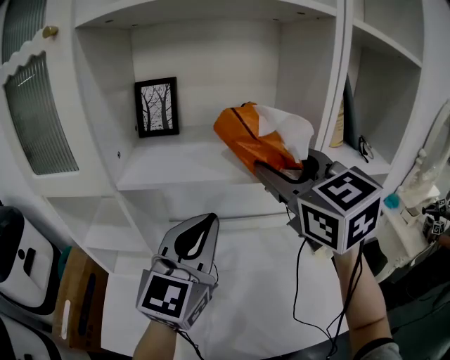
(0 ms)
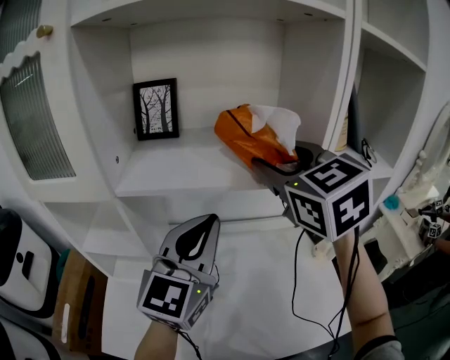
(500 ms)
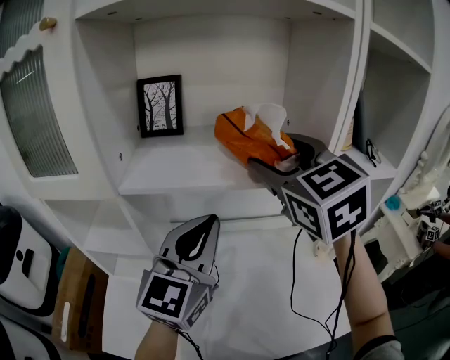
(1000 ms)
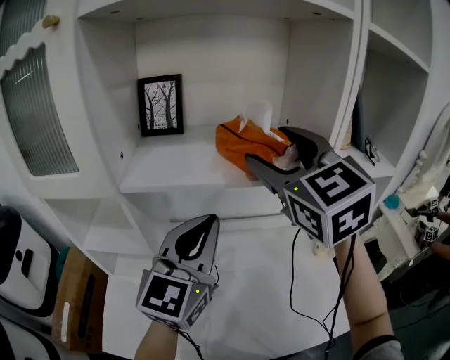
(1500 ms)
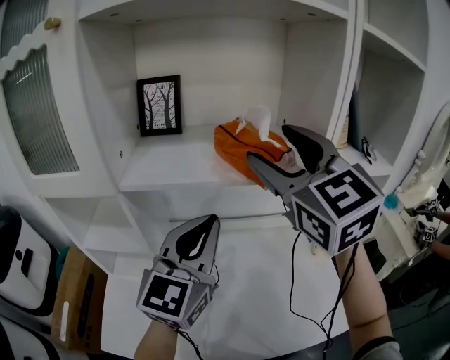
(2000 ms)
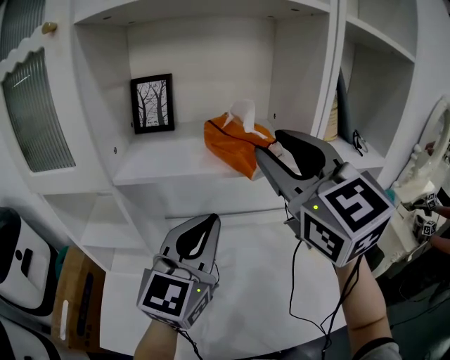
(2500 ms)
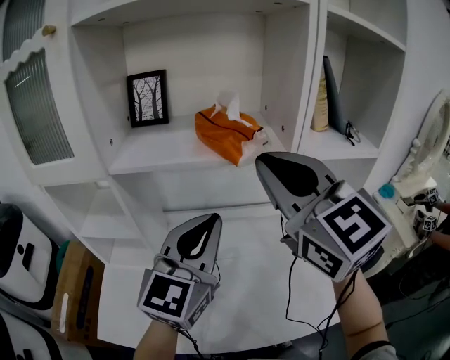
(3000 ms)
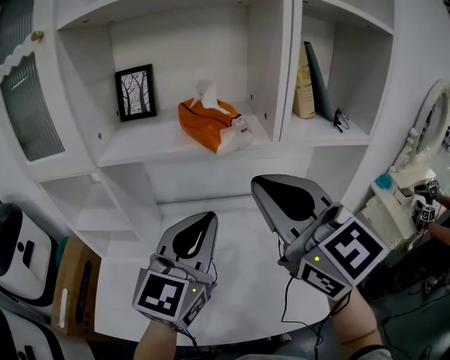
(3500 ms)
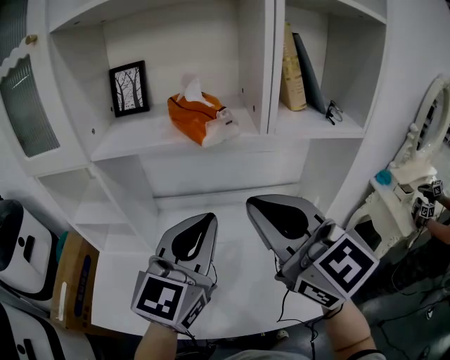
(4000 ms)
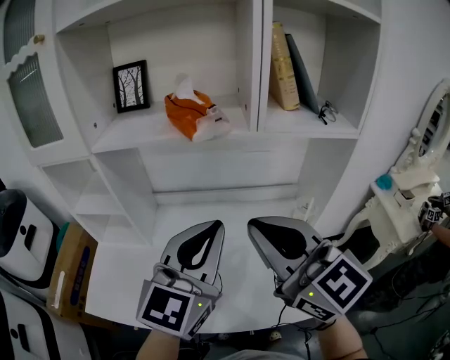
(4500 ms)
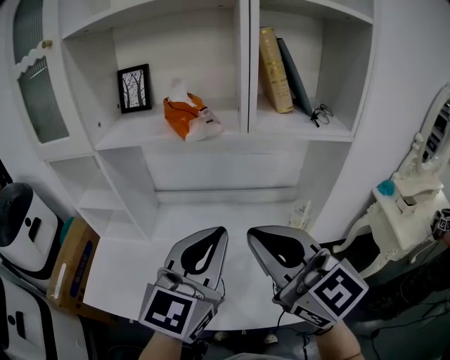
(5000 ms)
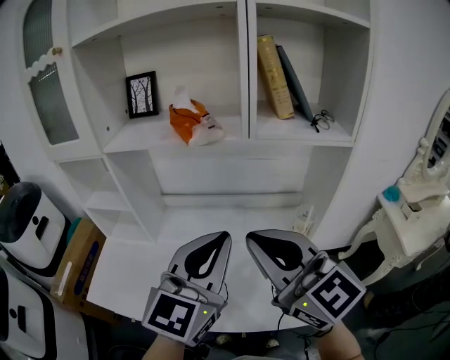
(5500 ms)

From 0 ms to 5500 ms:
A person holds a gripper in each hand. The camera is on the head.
From 0 ms to 2000 ms: The right gripper opens.
From 2000 ms to 3500 ms: The left gripper is displaced to the right and backward by some 10 cm, while the right gripper travels backward and downward by about 15 cm, and closes up.
From 3500 ms to 5500 ms: The right gripper goes roughly 15 cm backward, downward and to the right; the left gripper goes some 15 cm backward and to the right.

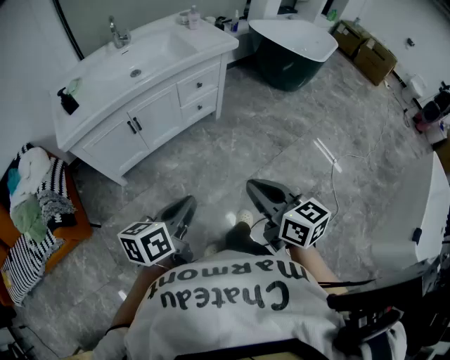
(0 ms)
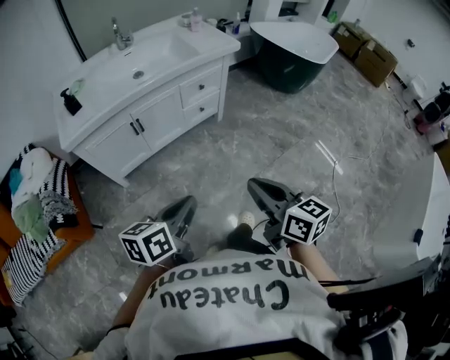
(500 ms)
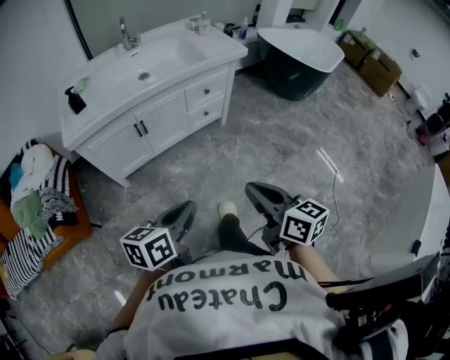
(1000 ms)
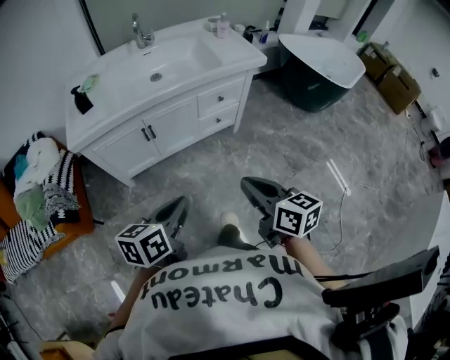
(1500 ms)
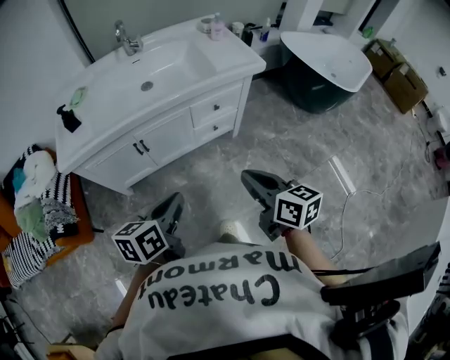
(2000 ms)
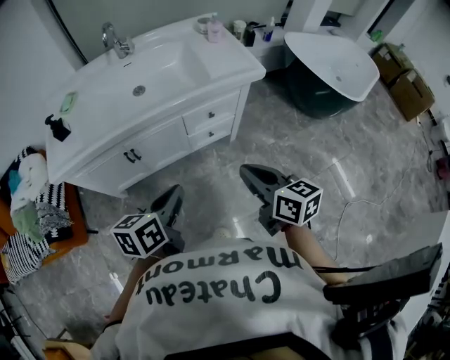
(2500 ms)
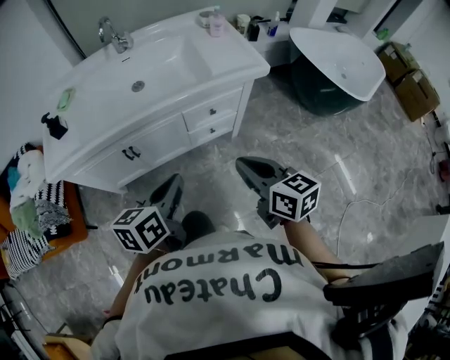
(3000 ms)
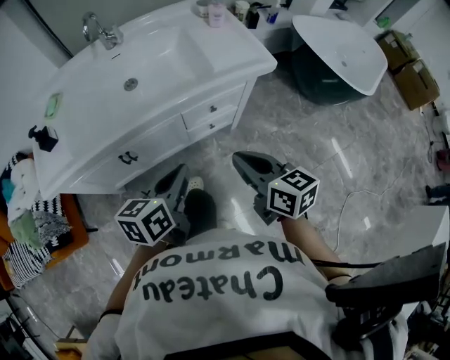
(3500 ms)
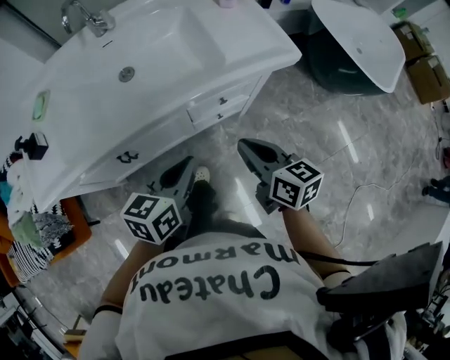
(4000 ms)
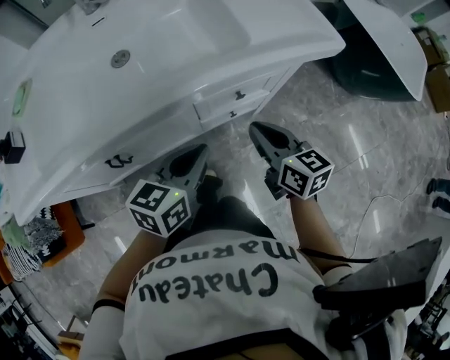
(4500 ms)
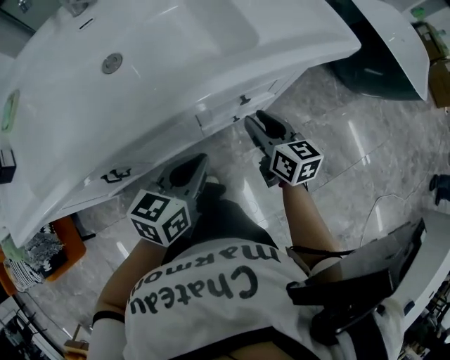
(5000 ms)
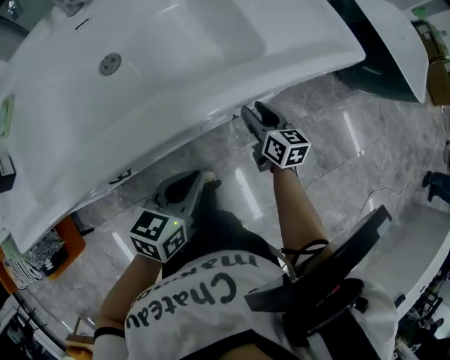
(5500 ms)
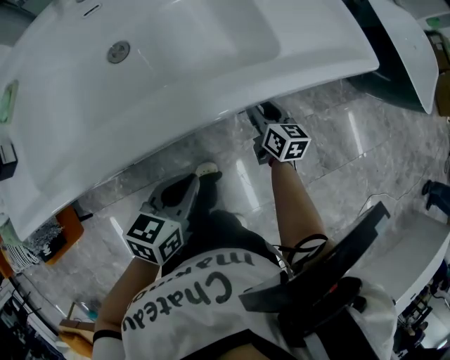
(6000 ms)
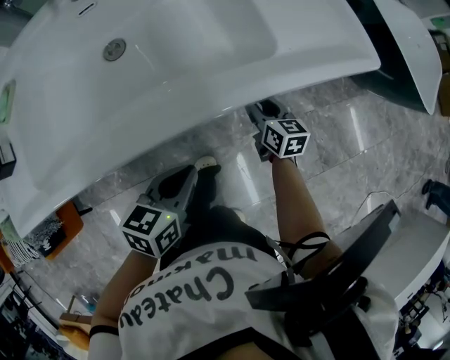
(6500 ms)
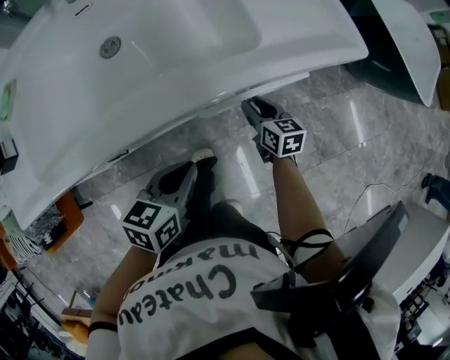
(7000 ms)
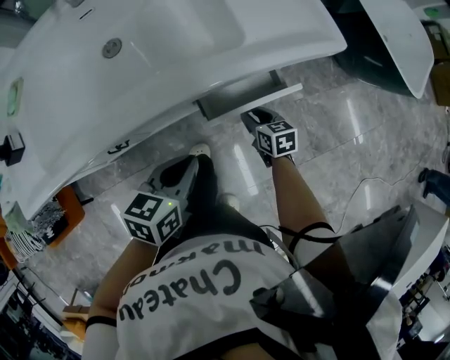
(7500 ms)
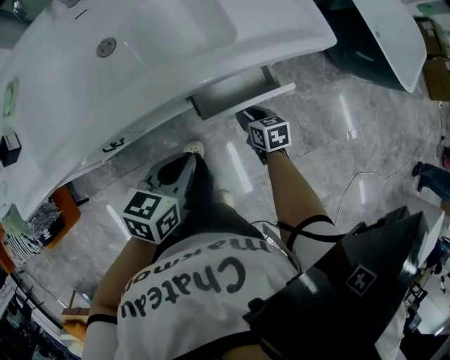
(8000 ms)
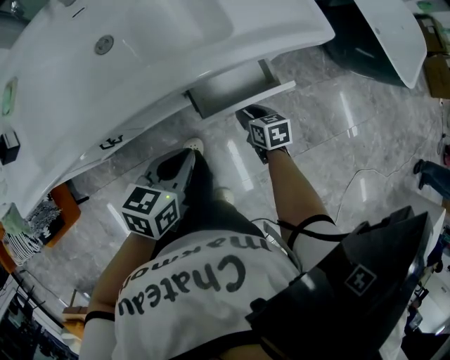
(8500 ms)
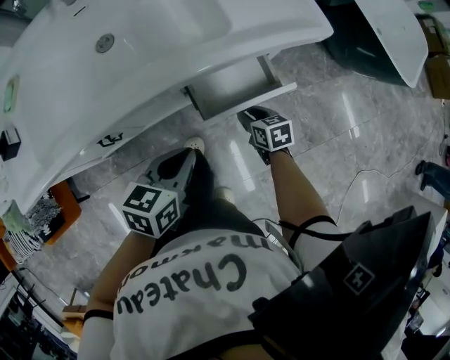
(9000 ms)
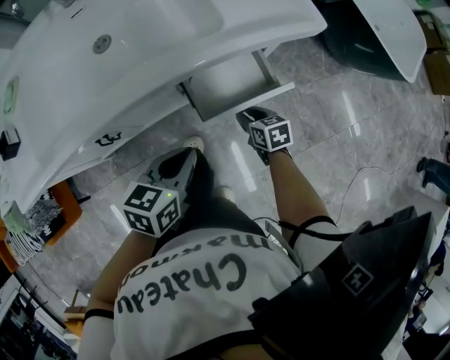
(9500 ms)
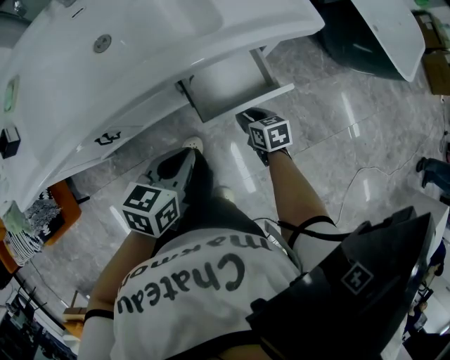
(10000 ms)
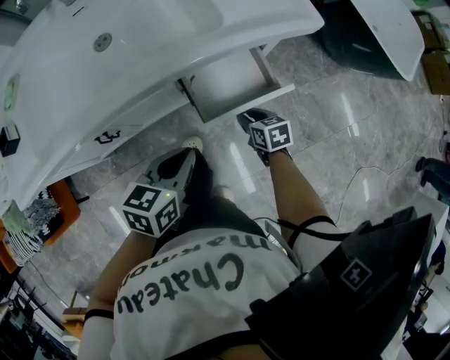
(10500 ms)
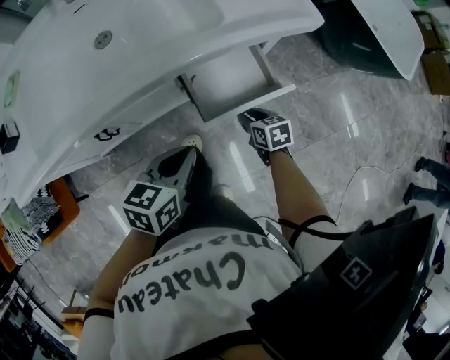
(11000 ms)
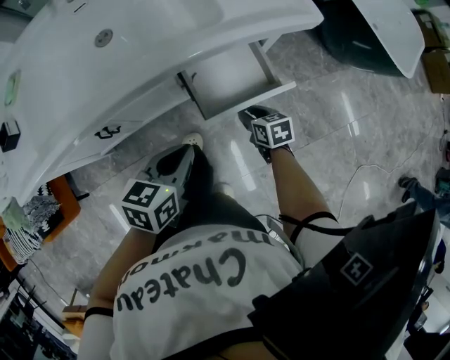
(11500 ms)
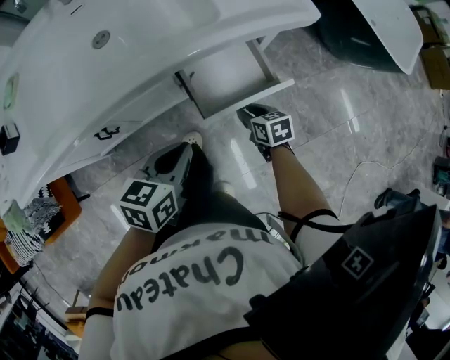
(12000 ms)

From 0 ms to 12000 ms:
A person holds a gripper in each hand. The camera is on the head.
From 0 ms to 2000 ms: Both grippers travel together forward, about 25 cm.
From 2000 ms to 4000 ms: Both grippers move forward, approximately 25 cm.
From 4000 ms to 6000 ms: The right gripper shifts about 35 cm downward and forward, and opens. Meanwhile the left gripper shifts approximately 15 cm downward.
From 6000 ms to 8000 ms: The right gripper heads backward and to the right, covering some 10 cm, and turns by approximately 30 degrees; the left gripper heads upward and to the right, covering some 10 cm.
From 8000 ms to 10000 ms: The grippers make only small movements.
From 10000 ms to 12000 ms: The grippers make only small movements.

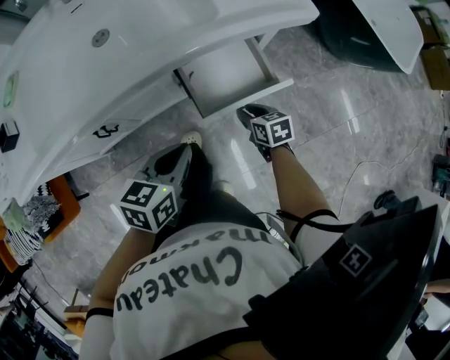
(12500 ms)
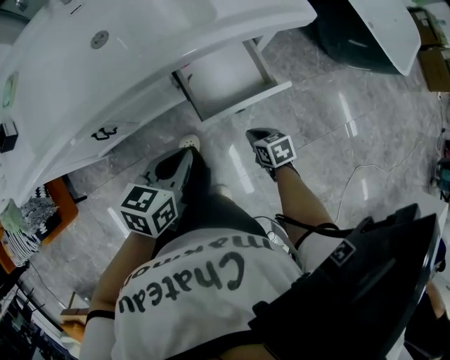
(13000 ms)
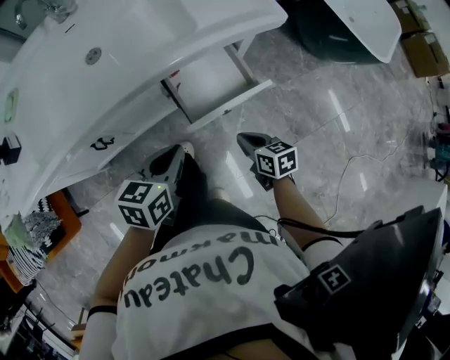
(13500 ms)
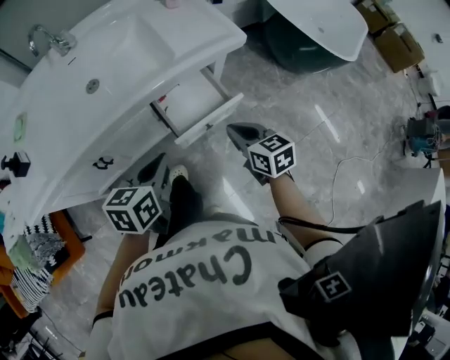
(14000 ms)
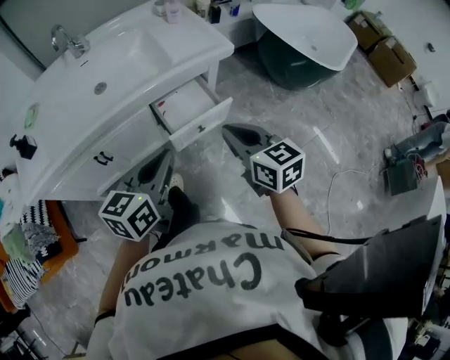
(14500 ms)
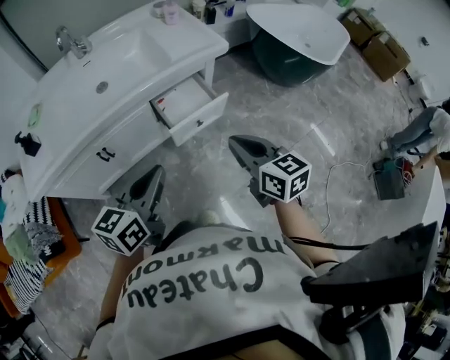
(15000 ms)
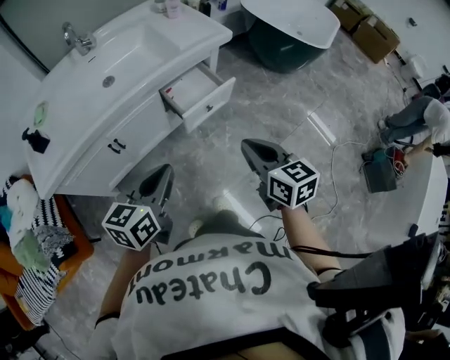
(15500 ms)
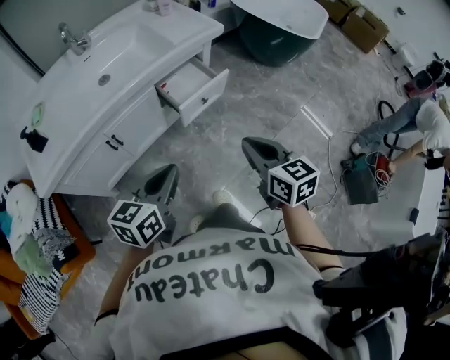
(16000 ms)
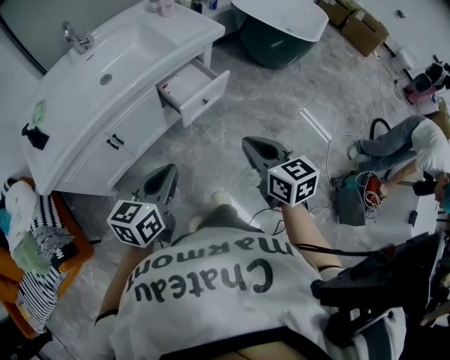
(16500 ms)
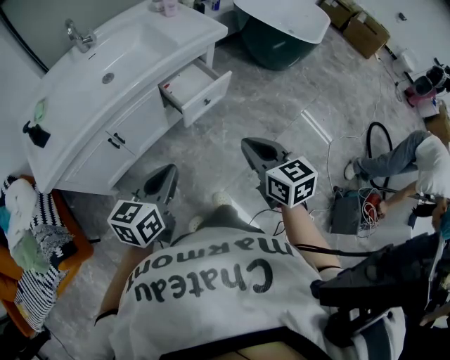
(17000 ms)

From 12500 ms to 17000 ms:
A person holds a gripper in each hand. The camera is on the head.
From 12500 ms to 14500 ms: The left gripper travels upward and backward by about 20 cm, and changes its angle by some 20 degrees, while the right gripper travels upward and backward by about 40 cm, turns by some 30 degrees, and closes its fingers.
From 14500 ms to 17000 ms: The right gripper goes about 20 cm backward. The left gripper moves backward and to the left, approximately 20 cm.

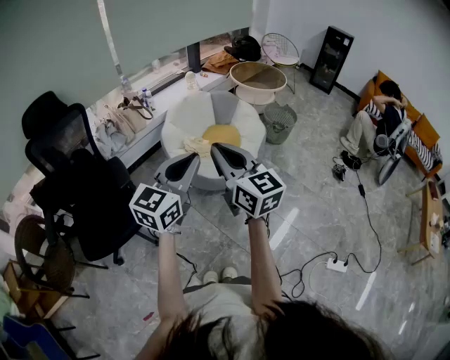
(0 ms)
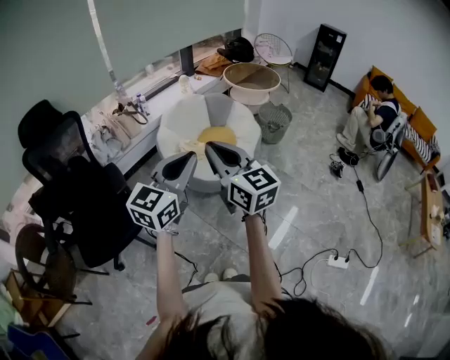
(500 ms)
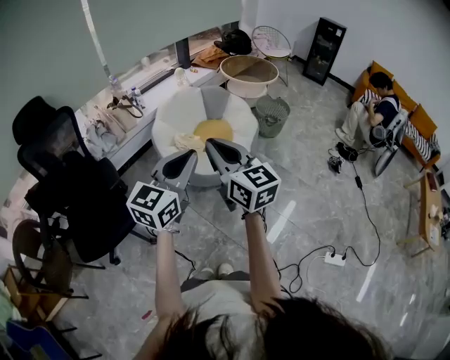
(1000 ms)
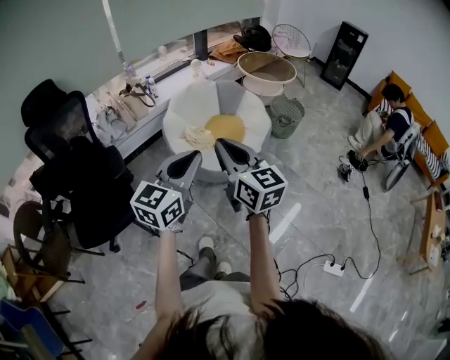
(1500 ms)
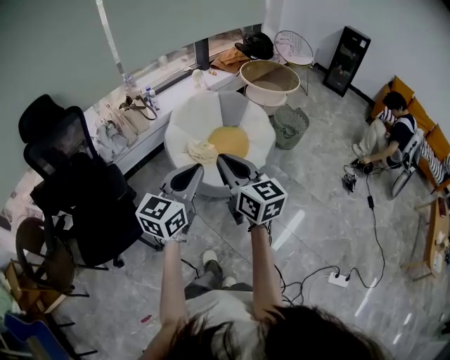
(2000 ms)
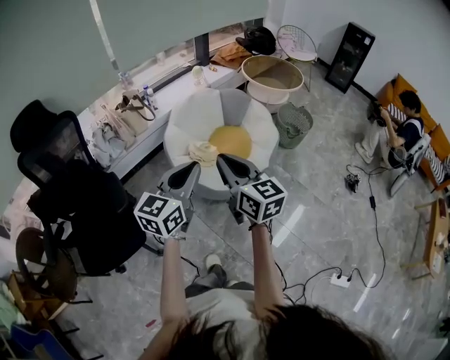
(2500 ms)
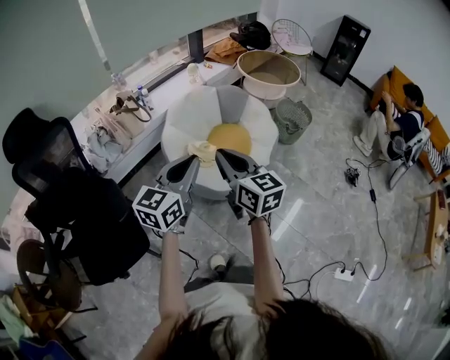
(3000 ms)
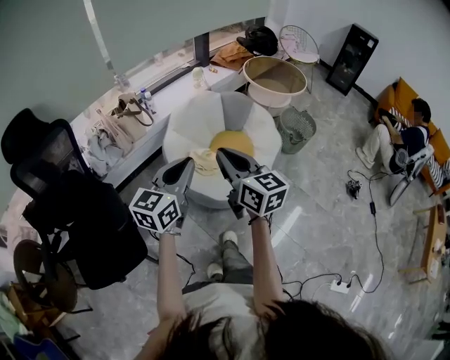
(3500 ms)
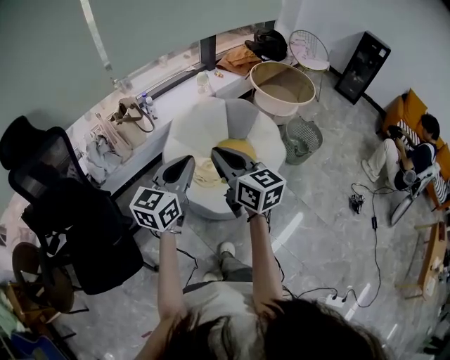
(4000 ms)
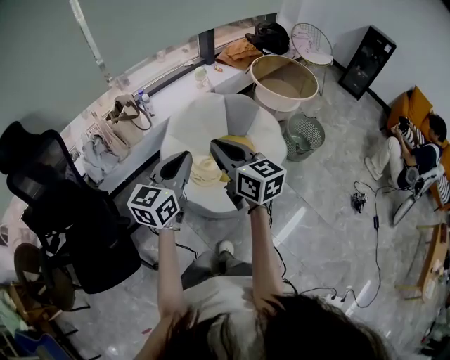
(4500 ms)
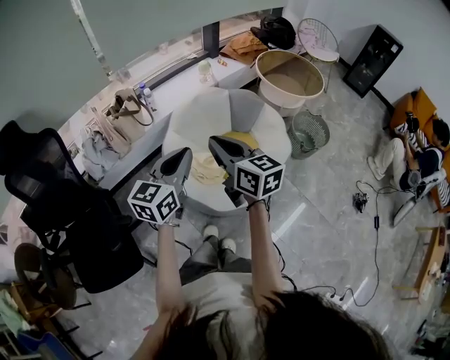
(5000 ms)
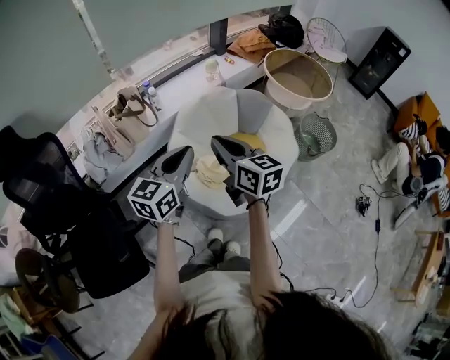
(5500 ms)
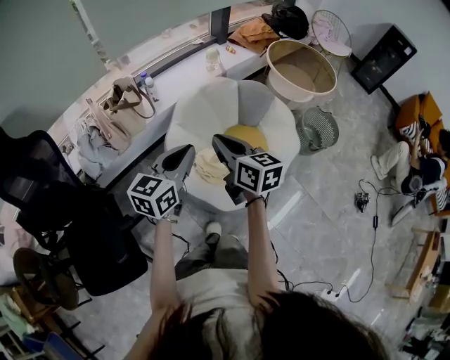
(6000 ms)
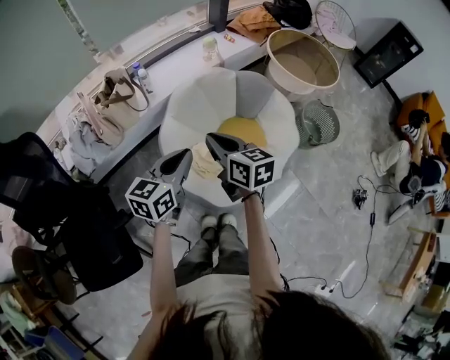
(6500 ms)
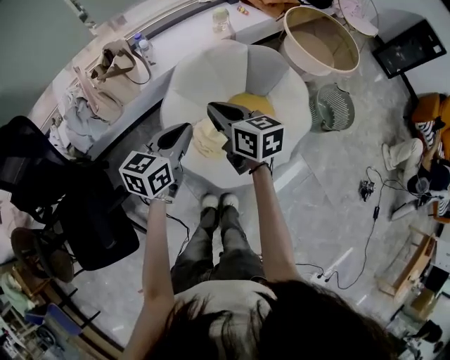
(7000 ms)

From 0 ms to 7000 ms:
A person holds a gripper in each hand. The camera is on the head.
From 0 ms to 2000 ms: Both grippers move forward and downward, approximately 10 cm.
From 2000 ms to 3500 ms: The left gripper heads forward and to the left, covering approximately 20 cm, while the right gripper is displaced forward by roughly 20 cm.
From 3500 ms to 5000 ms: Both grippers travel together forward, about 15 cm.
From 5000 ms to 7000 ms: The grippers both shift forward and downward by roughly 20 cm.
